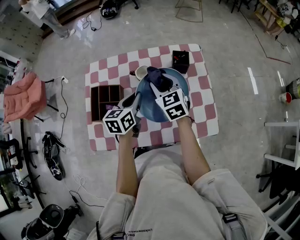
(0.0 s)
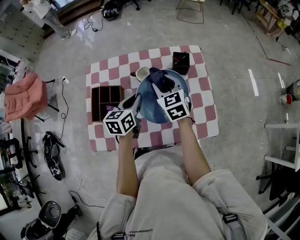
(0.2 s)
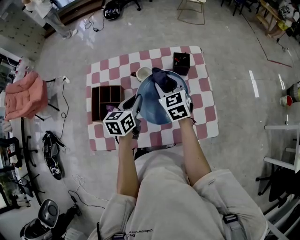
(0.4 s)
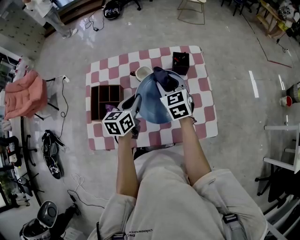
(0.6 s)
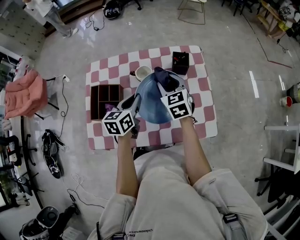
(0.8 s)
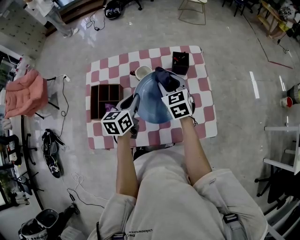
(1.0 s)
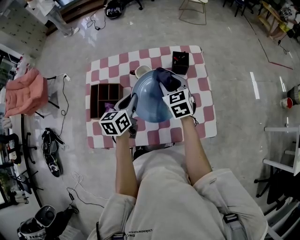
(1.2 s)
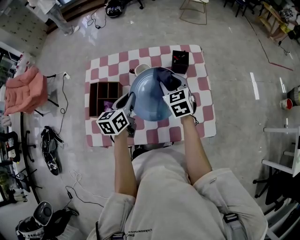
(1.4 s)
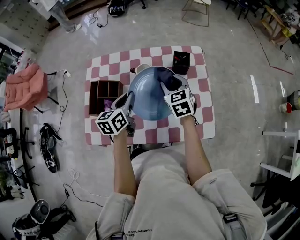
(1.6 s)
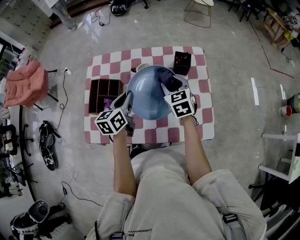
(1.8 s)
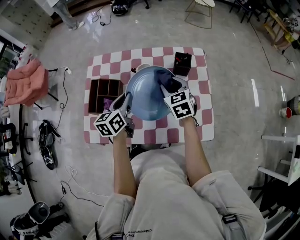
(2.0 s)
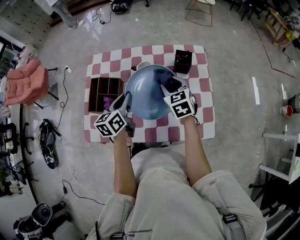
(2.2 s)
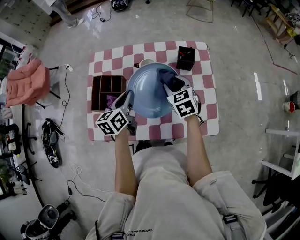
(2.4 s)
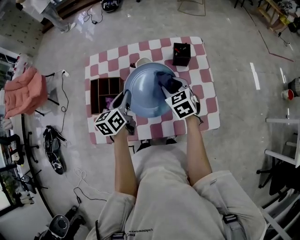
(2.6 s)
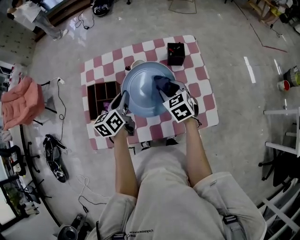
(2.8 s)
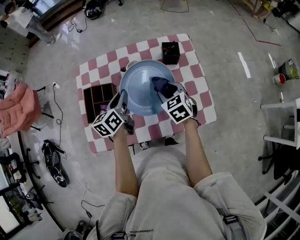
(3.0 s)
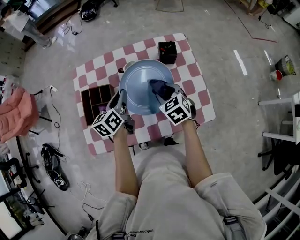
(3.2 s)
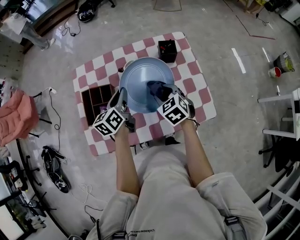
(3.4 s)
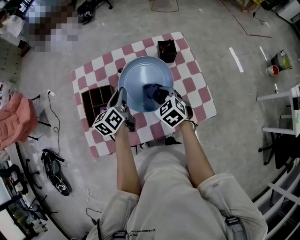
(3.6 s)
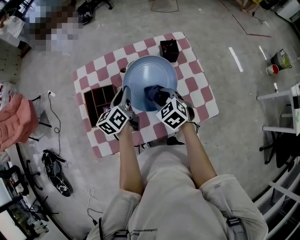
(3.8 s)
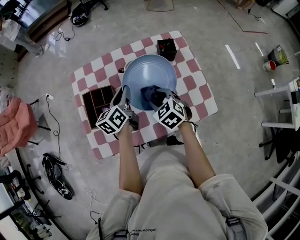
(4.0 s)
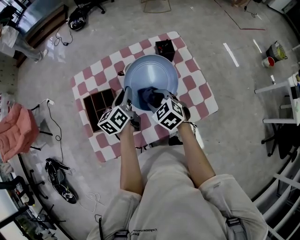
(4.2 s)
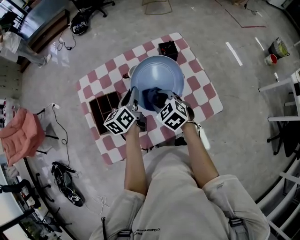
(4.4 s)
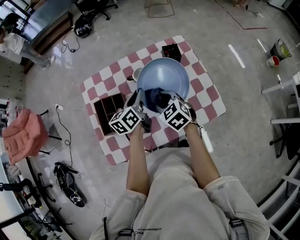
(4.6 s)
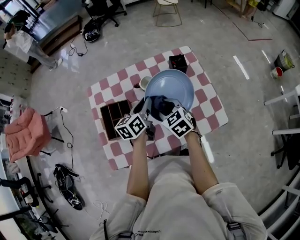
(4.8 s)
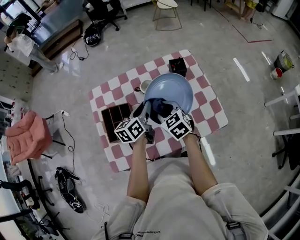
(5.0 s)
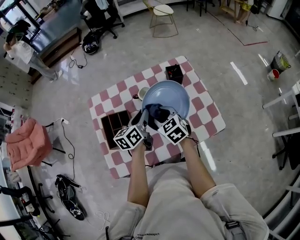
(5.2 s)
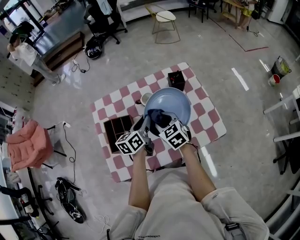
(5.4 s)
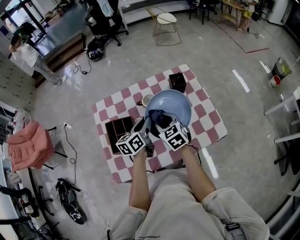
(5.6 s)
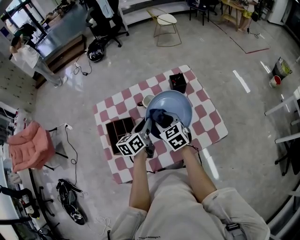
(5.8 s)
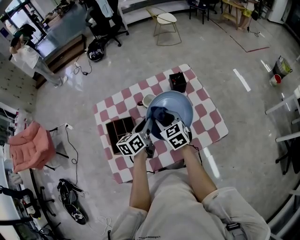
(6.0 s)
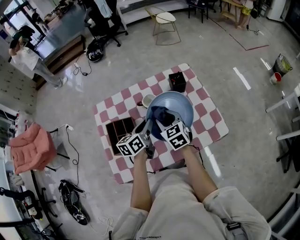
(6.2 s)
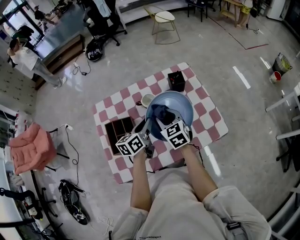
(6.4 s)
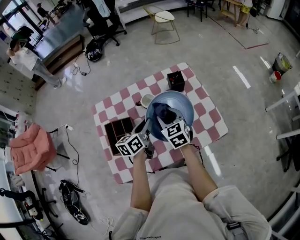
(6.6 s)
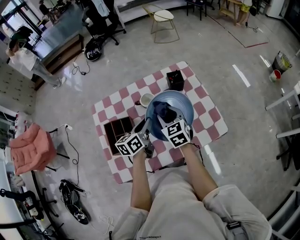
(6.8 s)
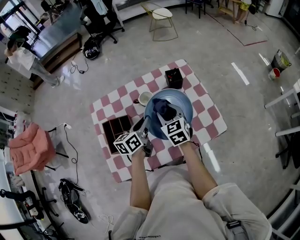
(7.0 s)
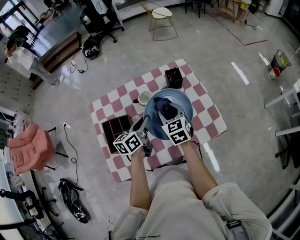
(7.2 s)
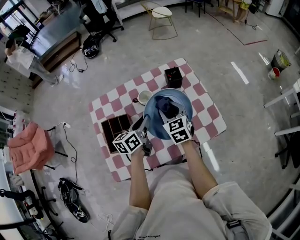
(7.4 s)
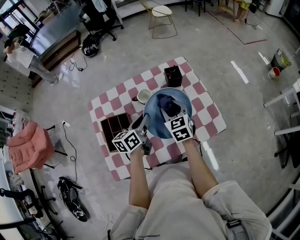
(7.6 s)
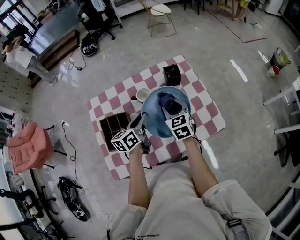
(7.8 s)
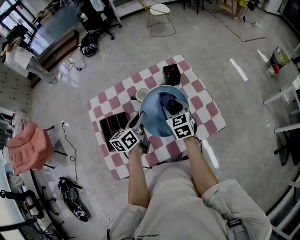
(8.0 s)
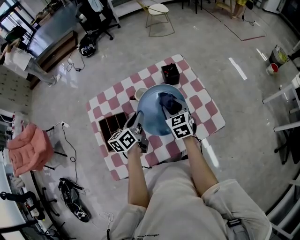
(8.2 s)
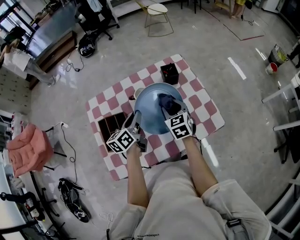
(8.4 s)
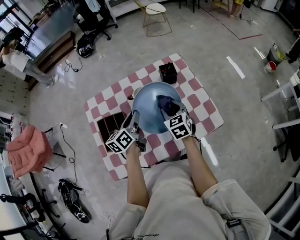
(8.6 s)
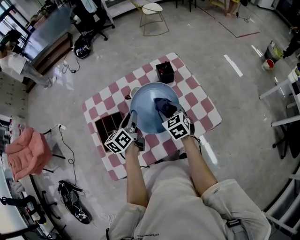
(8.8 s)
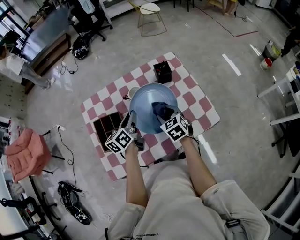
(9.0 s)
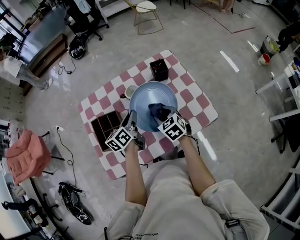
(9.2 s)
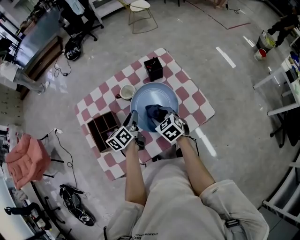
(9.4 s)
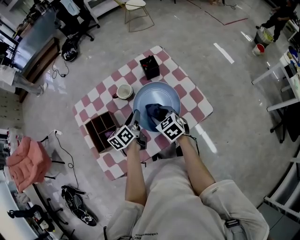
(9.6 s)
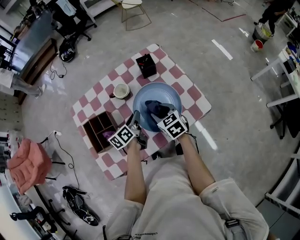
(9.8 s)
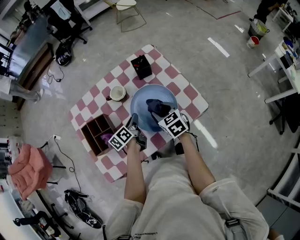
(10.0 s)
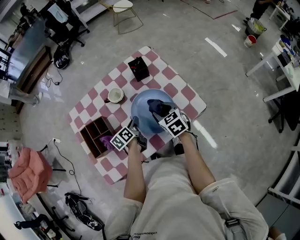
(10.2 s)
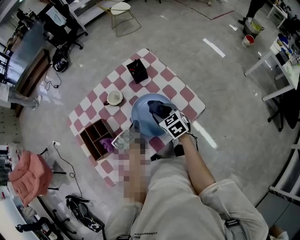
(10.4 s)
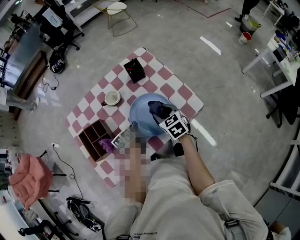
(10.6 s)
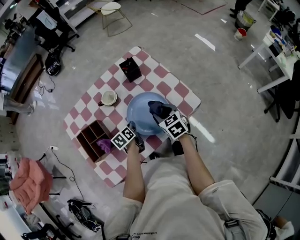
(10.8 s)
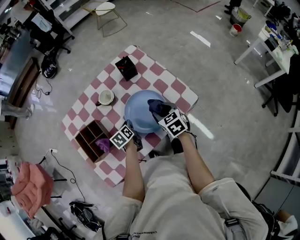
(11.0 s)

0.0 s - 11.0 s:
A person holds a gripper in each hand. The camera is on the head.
0.0 s - 1.6 s: The right gripper is displaced to the right by approximately 5 cm.
1.6 s - 3.2 s: The right gripper moves backward, some 5 cm.
3.2 s - 4.8 s: The right gripper travels to the left by approximately 10 cm.
4.8 s - 6.2 s: The grippers move only a little.
6.2 s - 7.8 s: The right gripper moves to the right, about 5 cm.
7.8 s - 9.4 s: The right gripper goes about 10 cm downward and backward.
9.4 s - 11.0 s: The right gripper travels to the right by roughly 10 cm. The left gripper travels downward by roughly 15 cm, and swivels some 30 degrees.

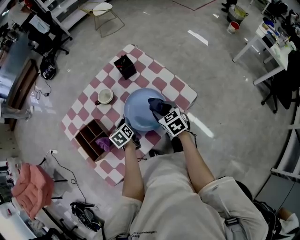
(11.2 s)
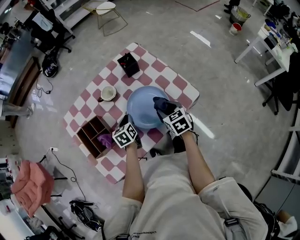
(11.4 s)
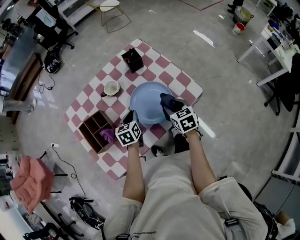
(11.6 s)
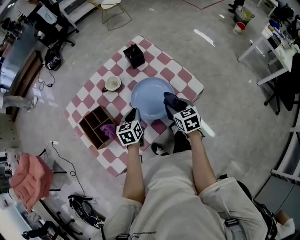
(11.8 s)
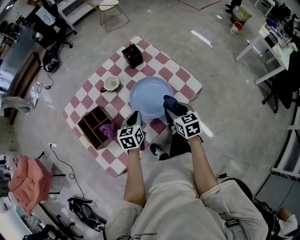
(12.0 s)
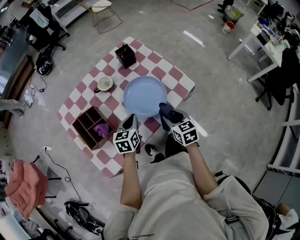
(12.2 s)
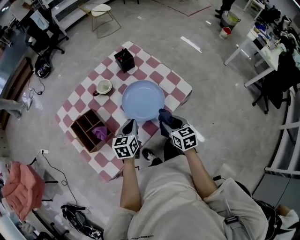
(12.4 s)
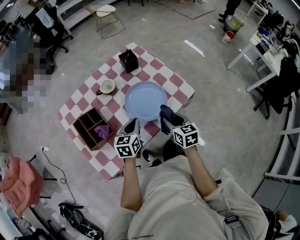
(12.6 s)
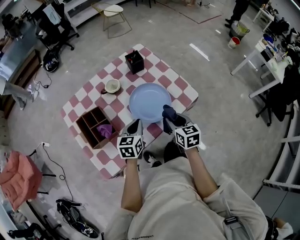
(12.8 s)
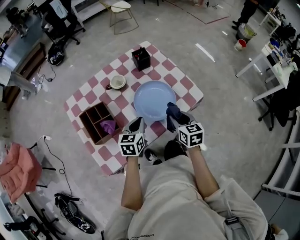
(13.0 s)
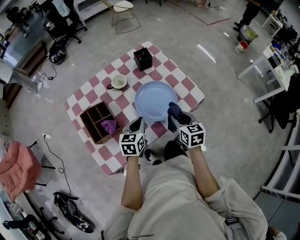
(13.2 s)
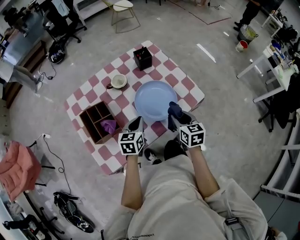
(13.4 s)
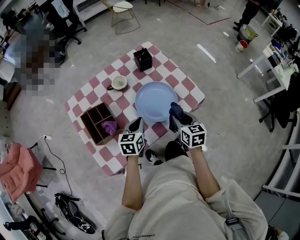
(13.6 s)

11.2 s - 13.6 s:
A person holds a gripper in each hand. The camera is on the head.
11.2 s - 12.4 s: The left gripper heads backward, upward and to the right, covering about 15 cm, and turns by some 30 degrees. Meanwhile the right gripper travels backward by some 15 cm.
12.4 s - 13.6 s: The right gripper shifts by some 5 cm.

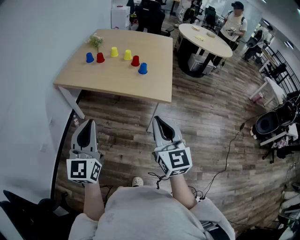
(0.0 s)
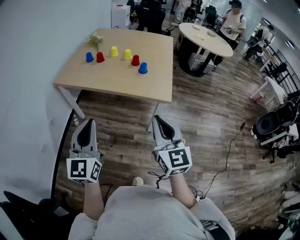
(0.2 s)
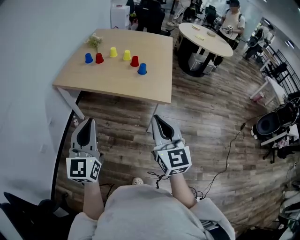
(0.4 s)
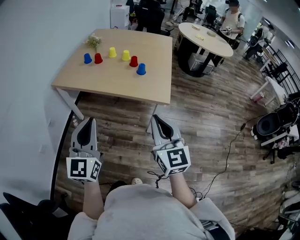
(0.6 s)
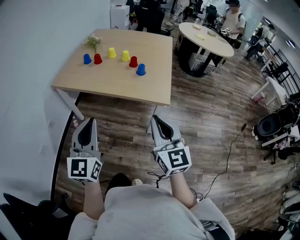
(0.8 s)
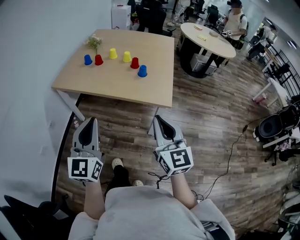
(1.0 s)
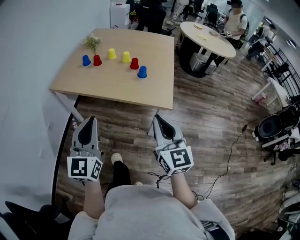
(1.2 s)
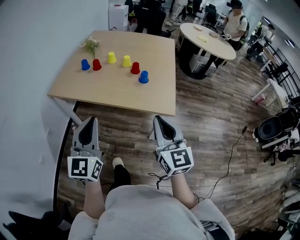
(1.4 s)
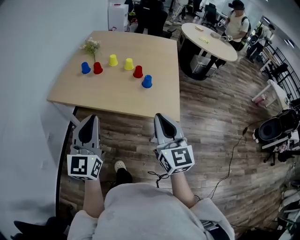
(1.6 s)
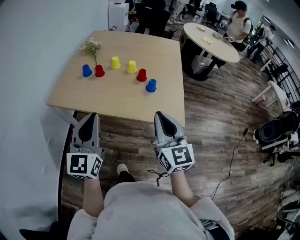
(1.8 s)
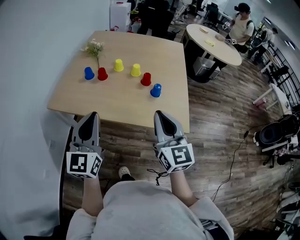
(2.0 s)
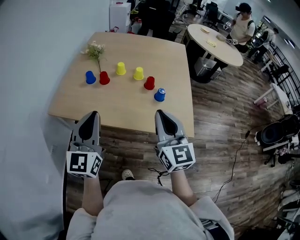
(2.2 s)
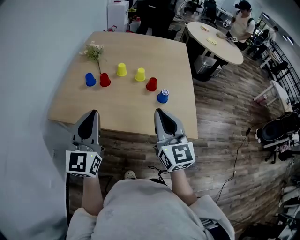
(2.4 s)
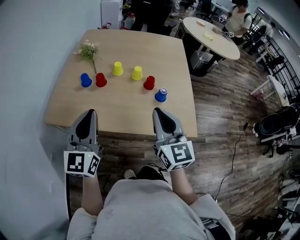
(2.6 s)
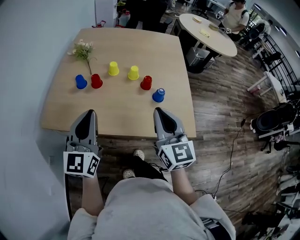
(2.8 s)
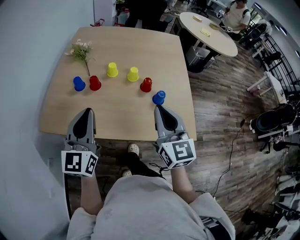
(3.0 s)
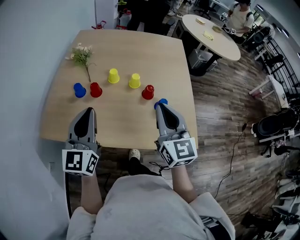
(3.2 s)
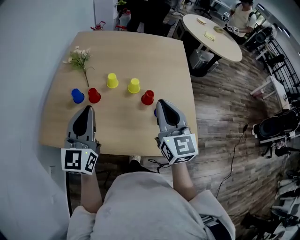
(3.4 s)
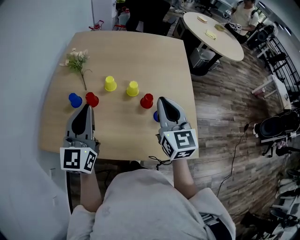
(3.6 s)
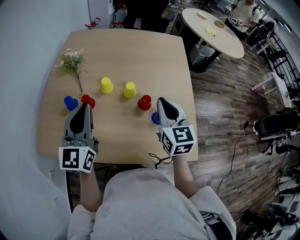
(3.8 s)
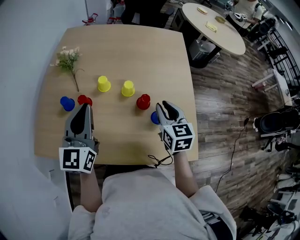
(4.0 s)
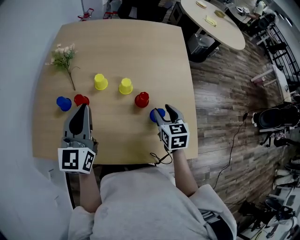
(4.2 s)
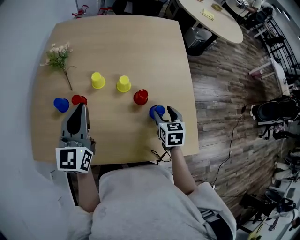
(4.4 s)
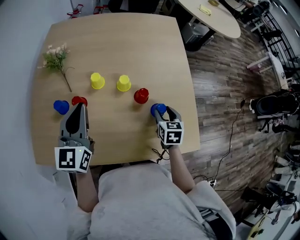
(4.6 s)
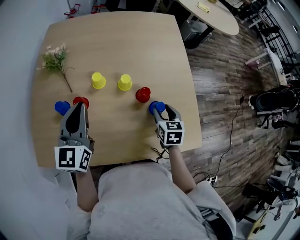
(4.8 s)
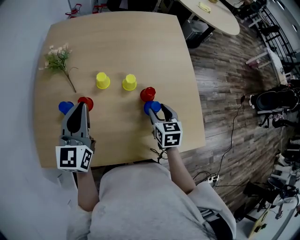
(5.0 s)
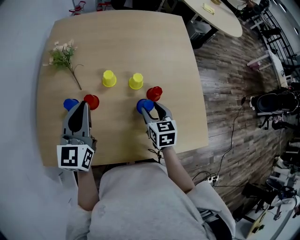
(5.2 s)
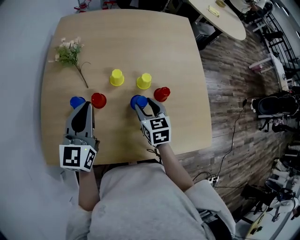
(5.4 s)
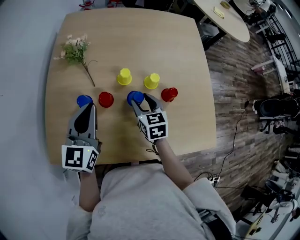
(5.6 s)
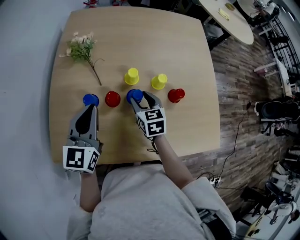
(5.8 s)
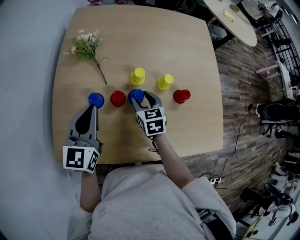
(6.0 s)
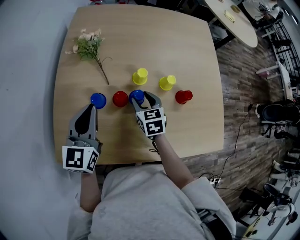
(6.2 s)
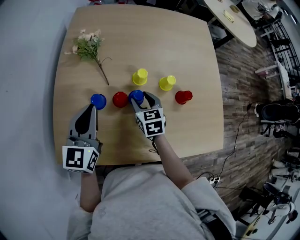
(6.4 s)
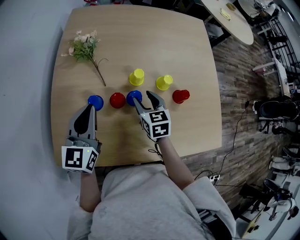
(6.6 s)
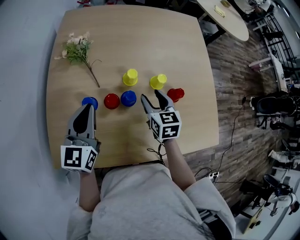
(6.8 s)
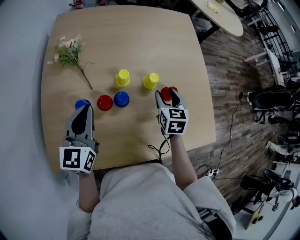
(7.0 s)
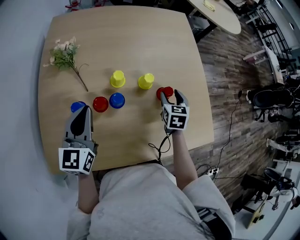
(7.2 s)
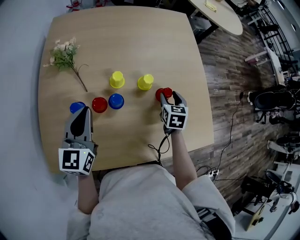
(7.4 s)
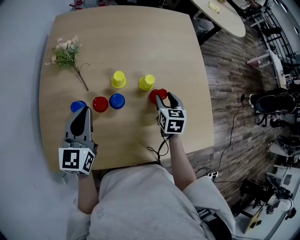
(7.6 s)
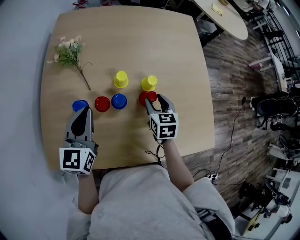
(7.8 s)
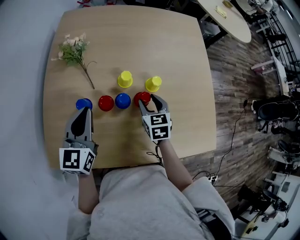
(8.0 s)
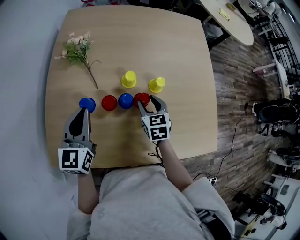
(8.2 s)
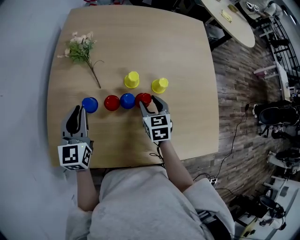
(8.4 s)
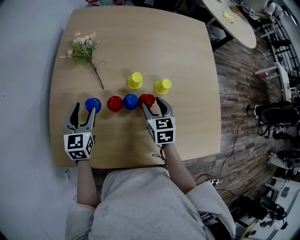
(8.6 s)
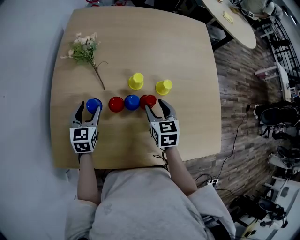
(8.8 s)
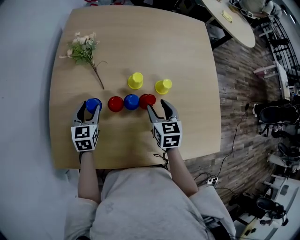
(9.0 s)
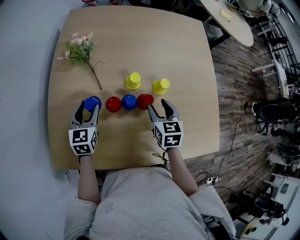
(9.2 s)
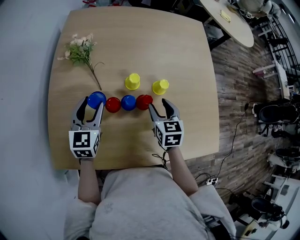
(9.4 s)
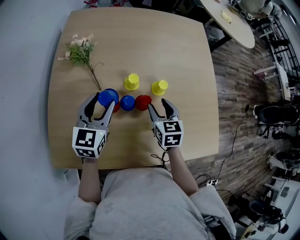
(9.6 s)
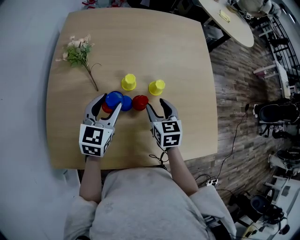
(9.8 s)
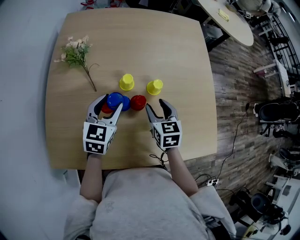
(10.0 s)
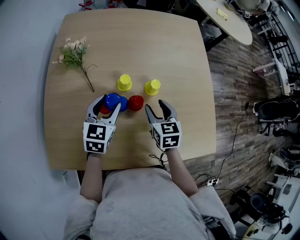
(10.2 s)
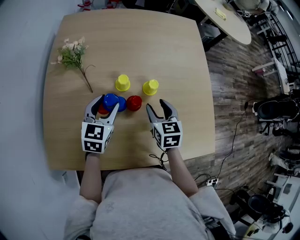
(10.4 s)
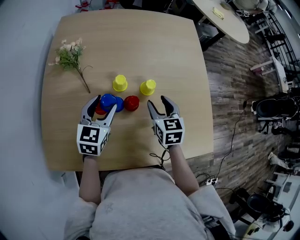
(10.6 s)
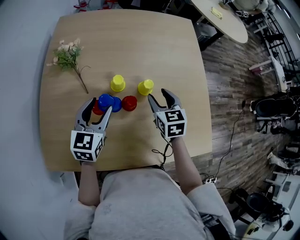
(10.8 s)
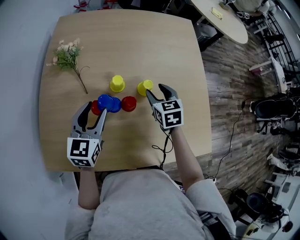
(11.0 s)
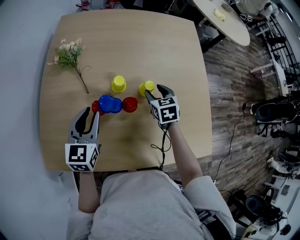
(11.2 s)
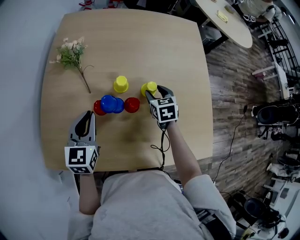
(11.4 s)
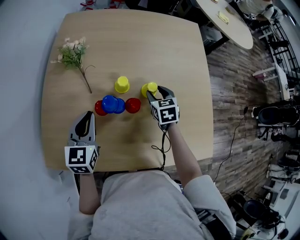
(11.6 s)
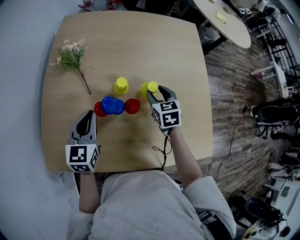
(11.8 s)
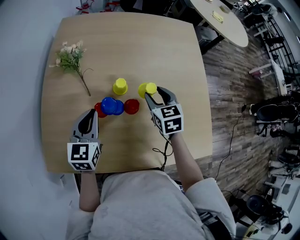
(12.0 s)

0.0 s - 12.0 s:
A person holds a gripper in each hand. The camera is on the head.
0.0 s - 1.6 s: Both grippers travel together forward, approximately 20 cm.
1.6 s - 3.0 s: The two grippers go some 25 cm forward.
3.0 s - 4.4 s: The right gripper is displaced downward, forward and to the right by about 30 cm, tips its fingers downward by roughly 40 degrees, and opens, while the left gripper shifts about 20 cm forward.
4.4 s - 6.0 s: The left gripper is displaced to the left by roughly 15 cm. Meanwhile the right gripper goes roughly 30 cm to the left.
6.0 s - 7.6 s: The right gripper heads to the right, covering some 20 cm; the left gripper moves some 5 cm.
7.6 s - 9.0 s: The left gripper heads downward and to the left, covering some 20 cm, rotates approximately 20 degrees, and opens up. The right gripper moves to the left, roughly 10 cm.
9.0 s - 10.4 s: The left gripper travels to the right and upward by roughly 15 cm, while the right gripper heads to the right, covering about 5 cm.
10.4 s - 12.0 s: The right gripper moves forward, approximately 5 cm; the left gripper moves about 5 cm, and closes its fingers.
